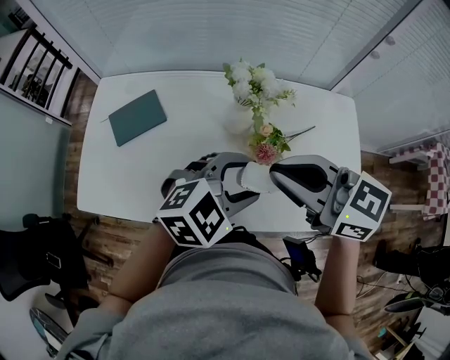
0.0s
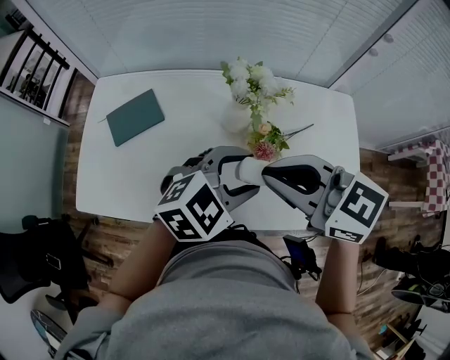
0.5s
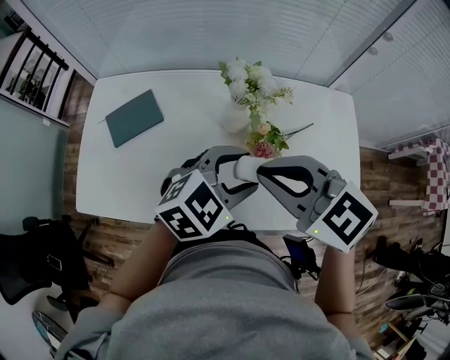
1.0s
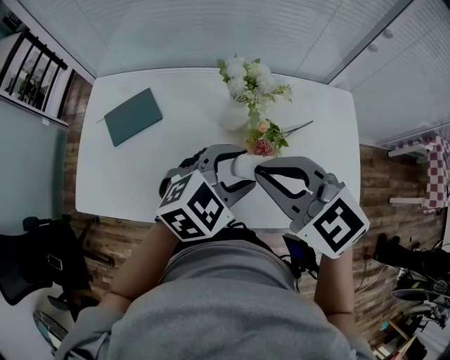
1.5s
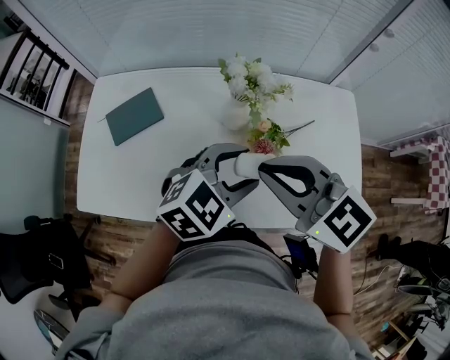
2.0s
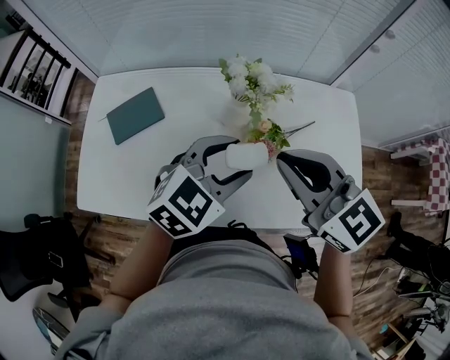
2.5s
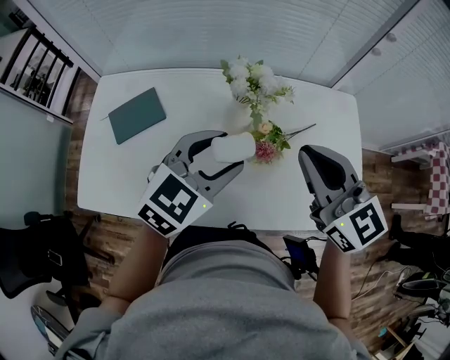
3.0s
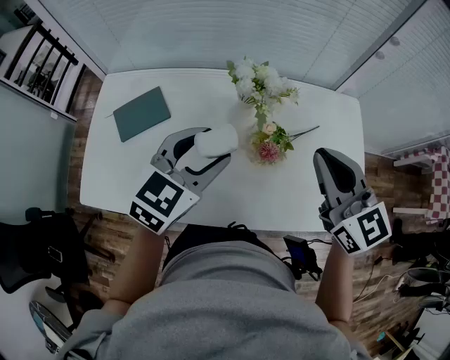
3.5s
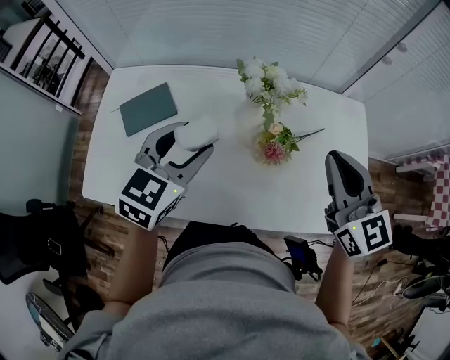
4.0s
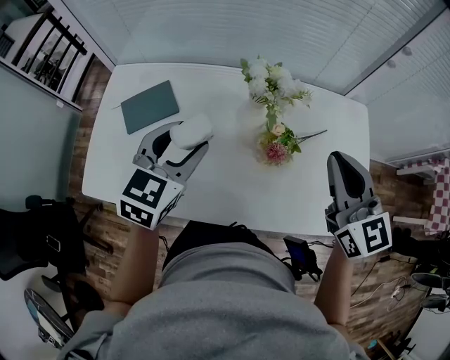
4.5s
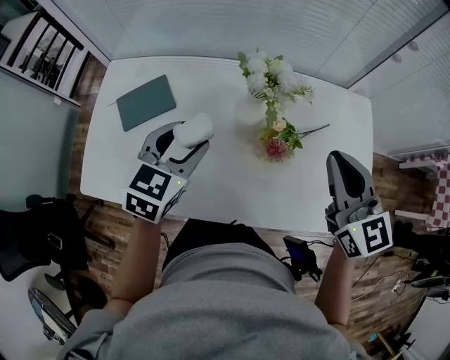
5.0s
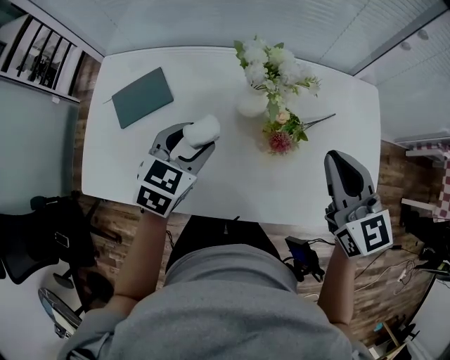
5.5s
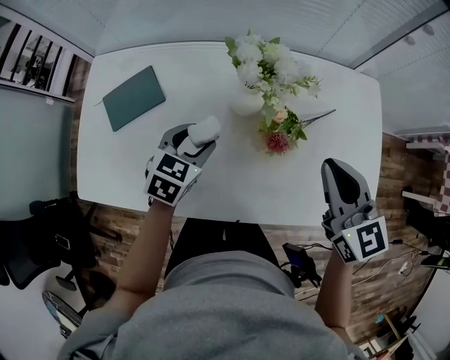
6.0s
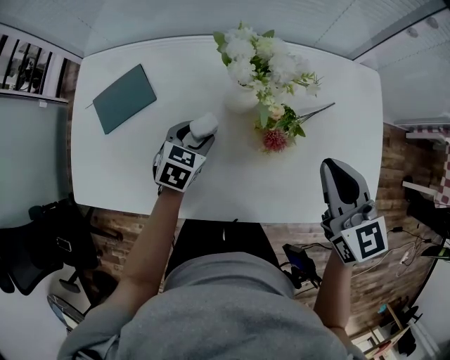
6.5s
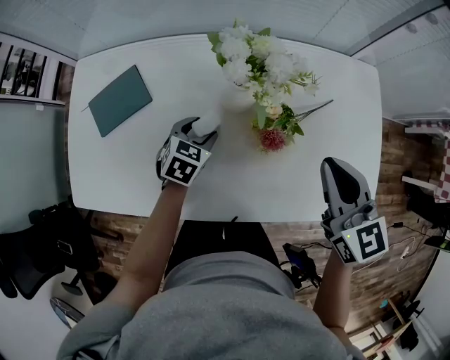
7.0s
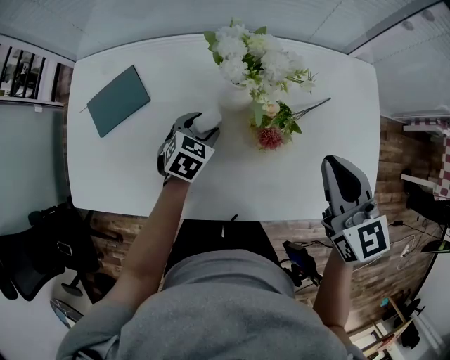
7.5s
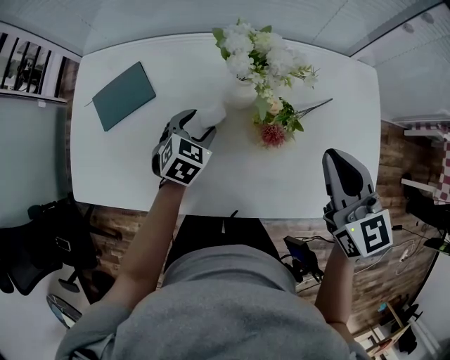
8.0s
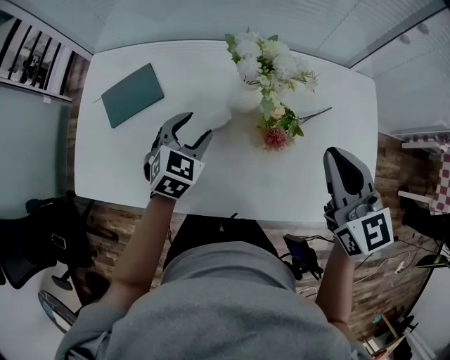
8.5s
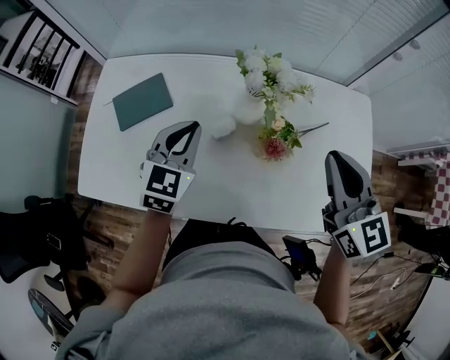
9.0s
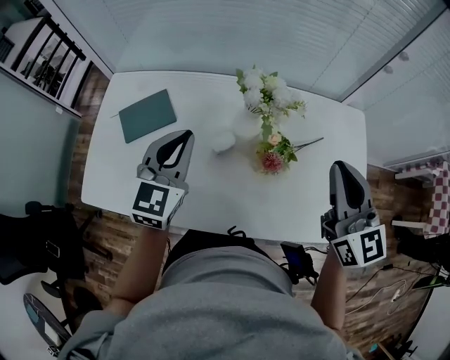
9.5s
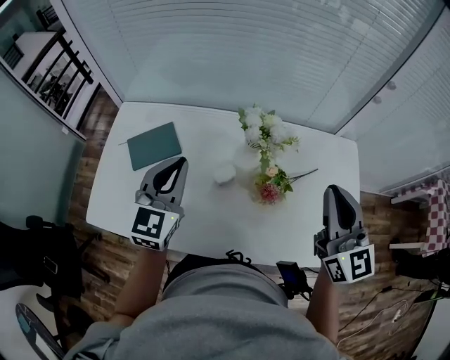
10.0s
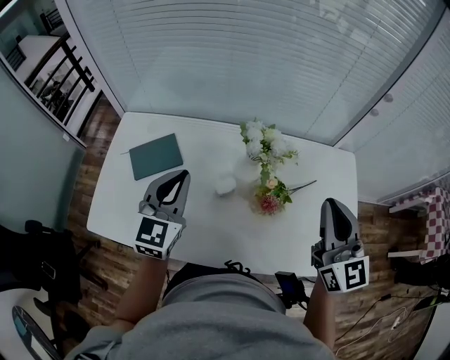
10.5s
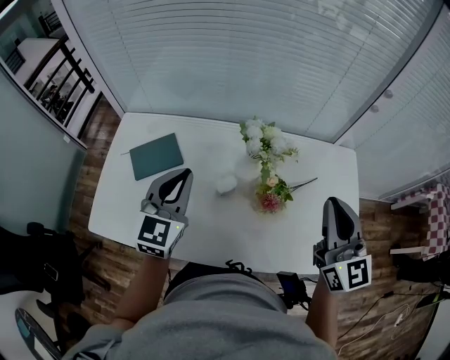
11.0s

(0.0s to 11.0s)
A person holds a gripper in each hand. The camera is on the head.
2.0s - 3.5s: The left gripper travels to the left by approximately 10 cm, and swivels about 20 degrees; the right gripper shifts about 10 cm to the right, and turns by some 30 degrees.
3.5s - 5.5s: The left gripper heads downward and to the left, covering some 10 cm; the right gripper travels downward by about 5 cm.
5.5s - 7.5s: The left gripper travels downward by some 15 cm.
7.5s - 9.0s: The left gripper shifts about 20 cm upward, rotates about 30 degrees, and closes its fingers. Meanwhile the right gripper shifts approximately 5 cm upward.
9.0s - 11.0s: The left gripper heads upward, covering some 10 cm, while the right gripper heads upward, covering approximately 5 cm.

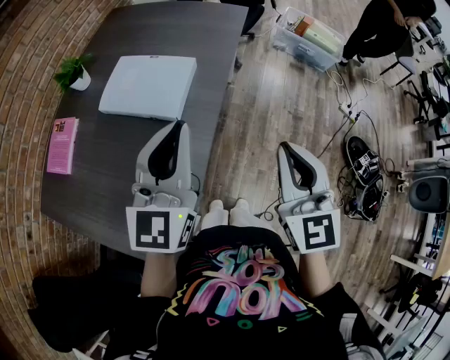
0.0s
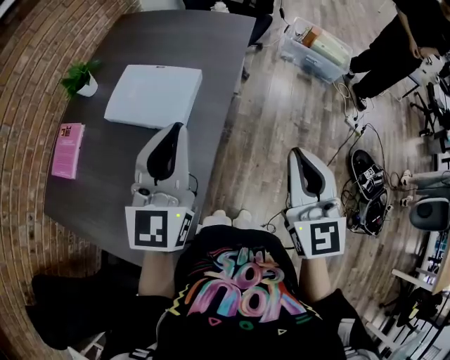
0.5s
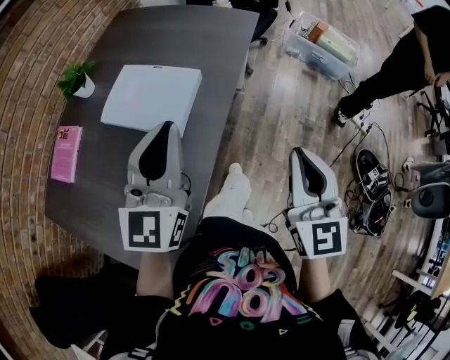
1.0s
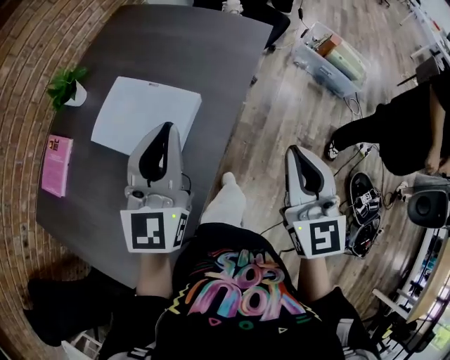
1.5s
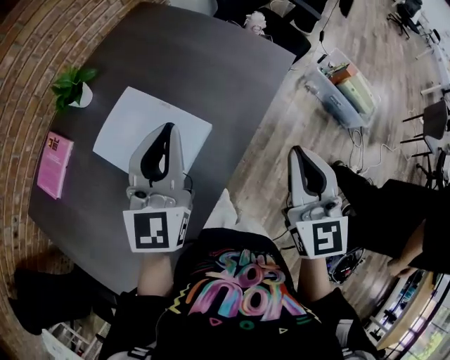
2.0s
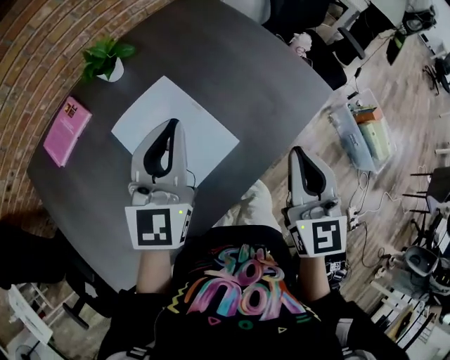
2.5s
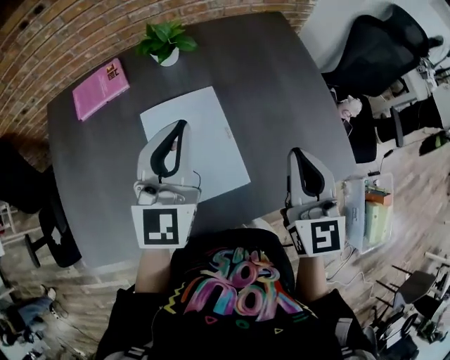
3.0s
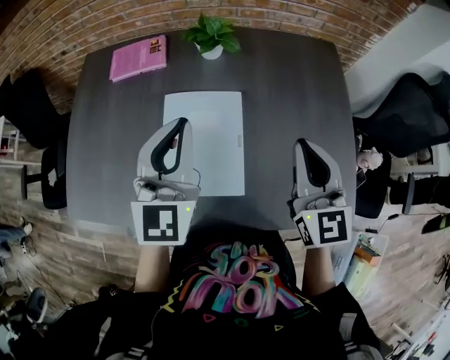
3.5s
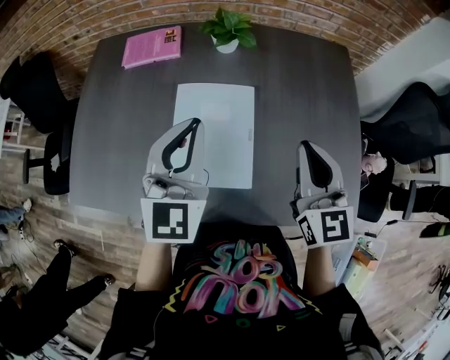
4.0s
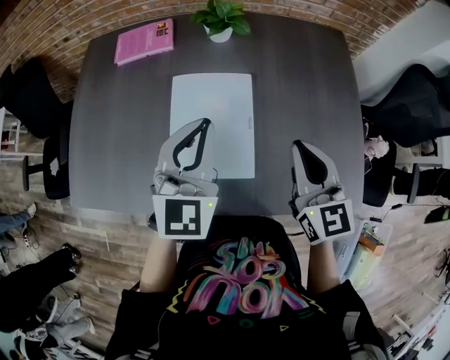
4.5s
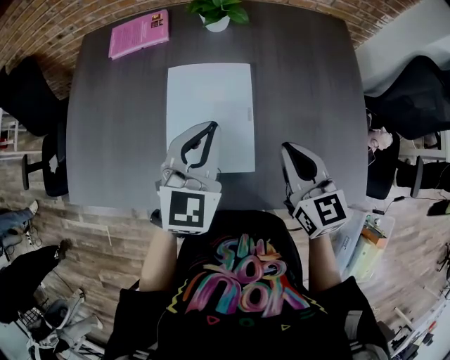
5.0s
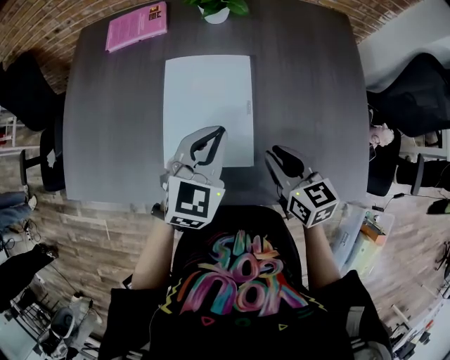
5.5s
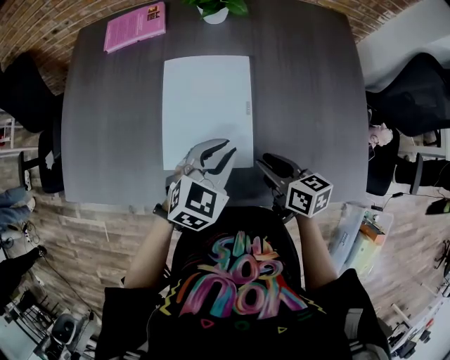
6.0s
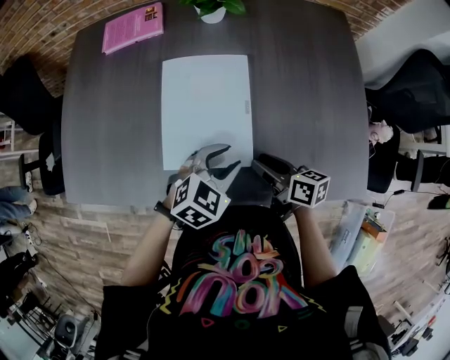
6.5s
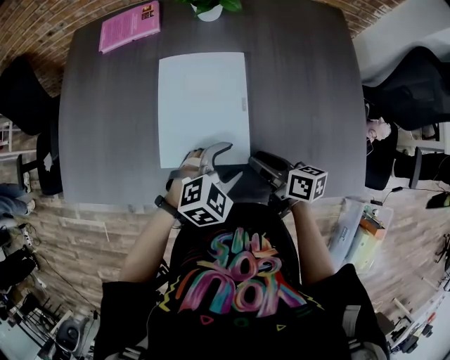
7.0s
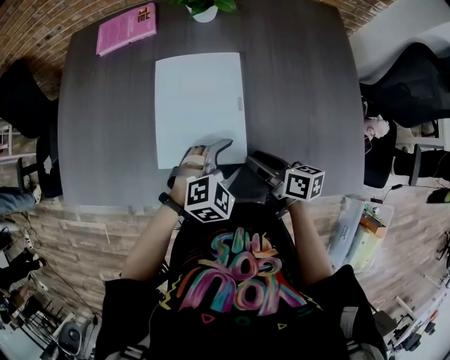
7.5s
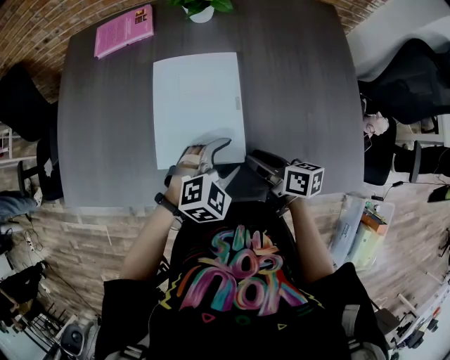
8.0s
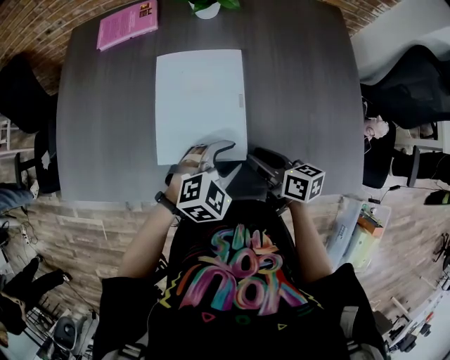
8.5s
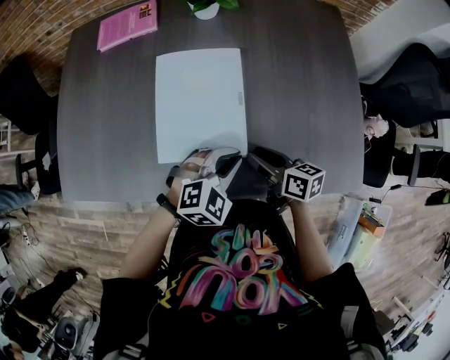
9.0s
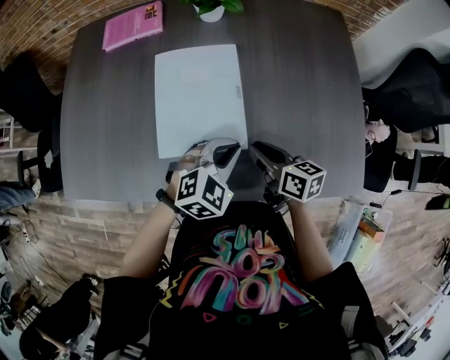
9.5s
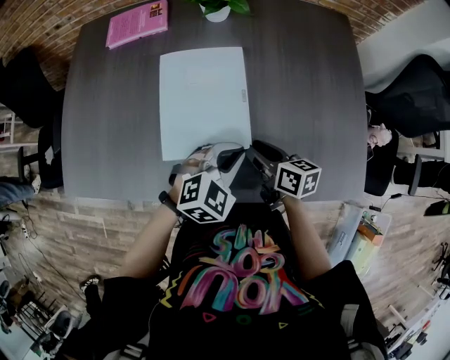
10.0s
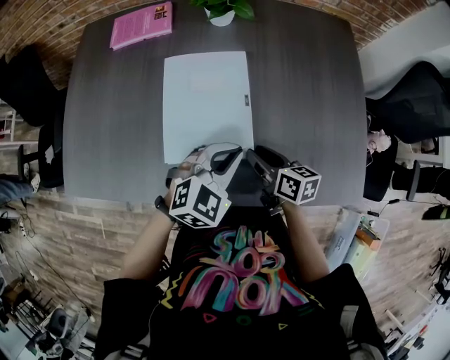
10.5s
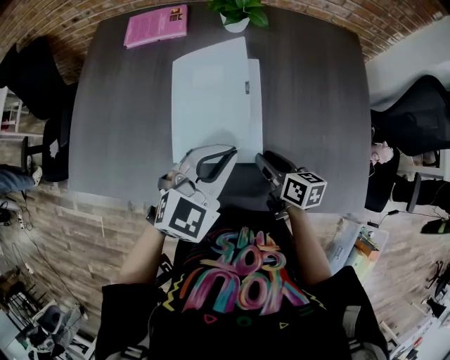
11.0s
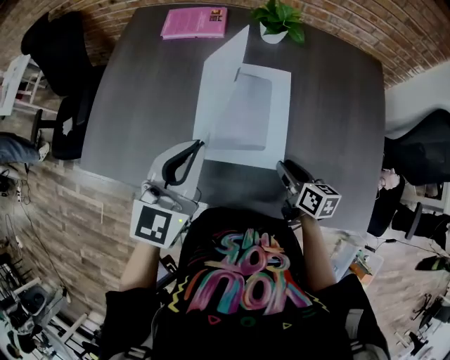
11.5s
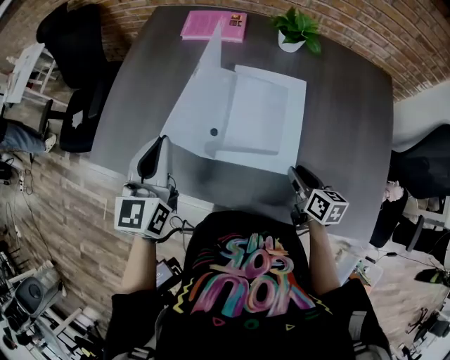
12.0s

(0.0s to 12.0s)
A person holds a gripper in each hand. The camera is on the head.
0.0s - 2.0s: The two grippers go roughly 30 cm forward. The left gripper changes its angle by some 20 degrees.
2.0s - 4.0s: The left gripper moves approximately 10 cm, and swivels roughly 60 degrees; the right gripper shifts by approximately 30 cm, and turns by some 60 degrees.
4.0s - 6.0s: Both grippers move downward, approximately 20 cm. The left gripper swivels about 40 degrees, while the right gripper swivels about 50 degrees, and opens.
6.0s - 8.0s: The left gripper travels downward by approximately 5 cm, turns by roughly 30 degrees, and opens its fingers.
8.0s - 10.0s: The left gripper closes up.
10.0s - 12.0s: The left gripper shifts roughly 35 cm to the left and upward, and tilts its fingers roughly 30 degrees upward.

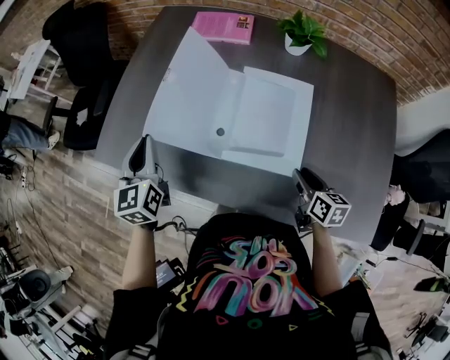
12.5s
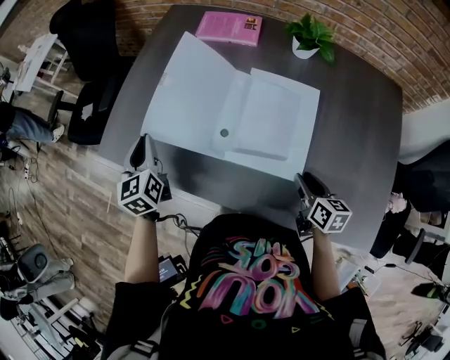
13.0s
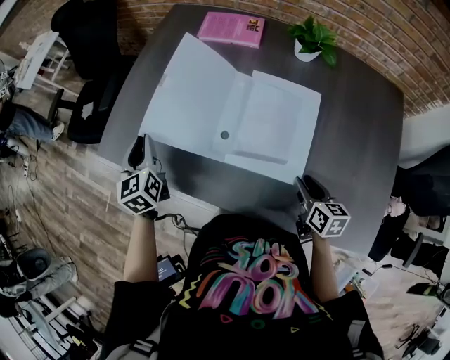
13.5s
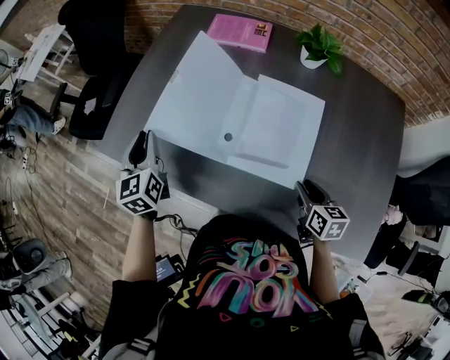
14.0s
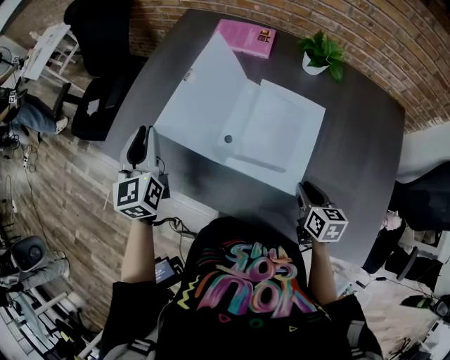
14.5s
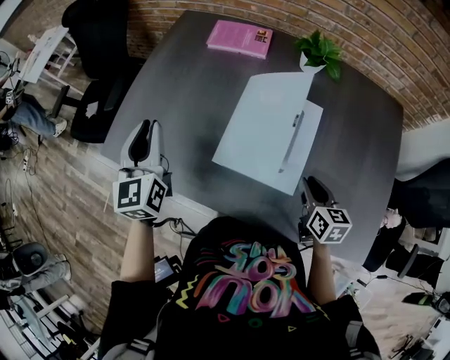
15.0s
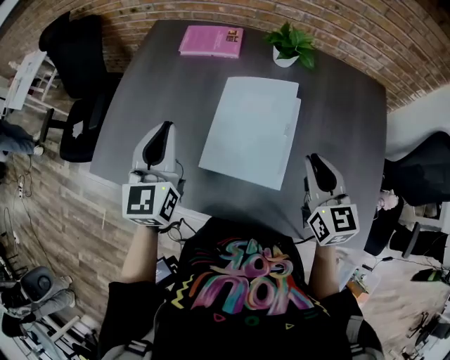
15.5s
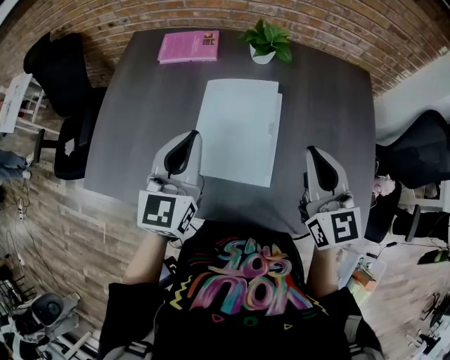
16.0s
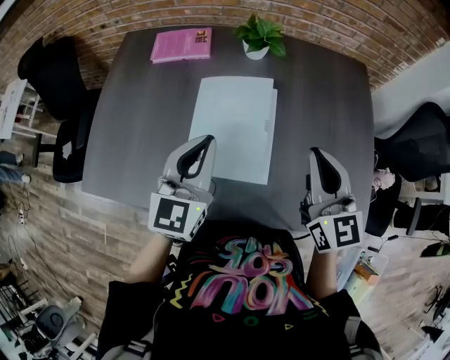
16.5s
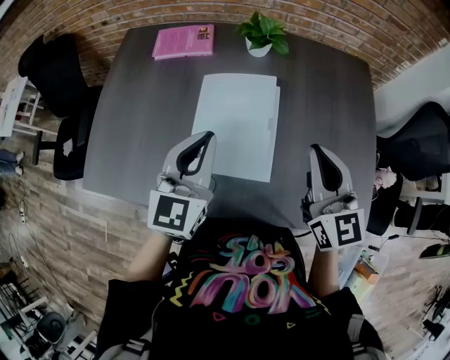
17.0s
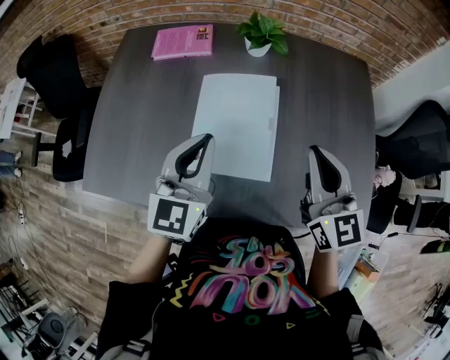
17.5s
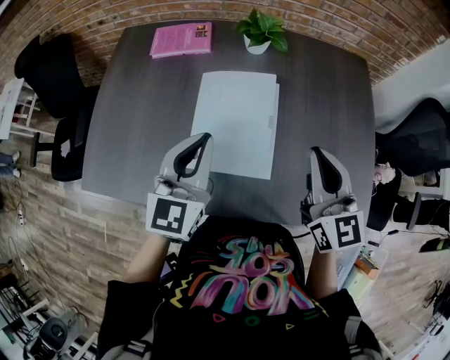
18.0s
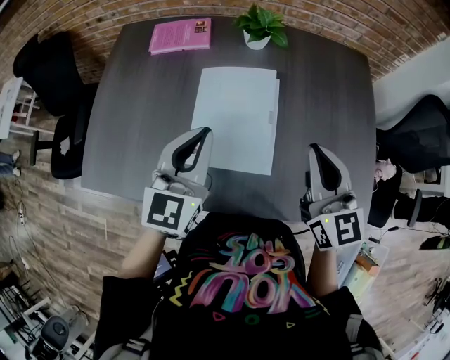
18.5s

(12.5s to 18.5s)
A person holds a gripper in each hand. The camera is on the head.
14.5s - 16.5s: The left gripper ends up about 30 cm from where it was, and changes its angle by some 40 degrees. The right gripper goes roughly 25 cm upward, points its fingers about 30 degrees further upward, and closes its fingers.
16.5s - 18.5s: The grippers make only small movements.
